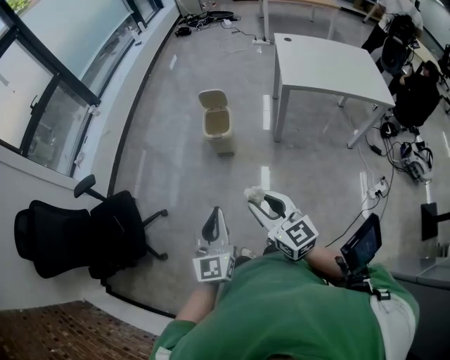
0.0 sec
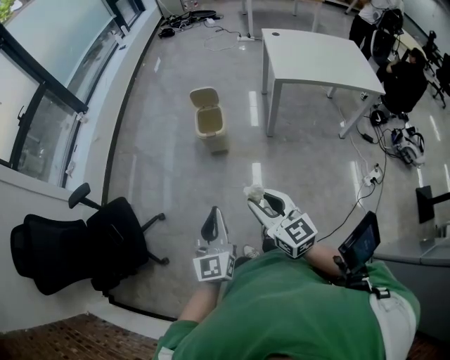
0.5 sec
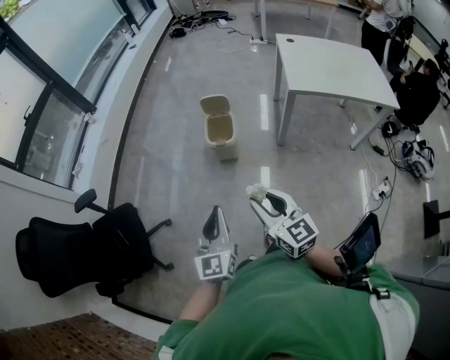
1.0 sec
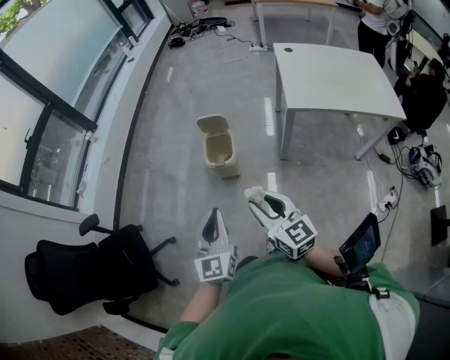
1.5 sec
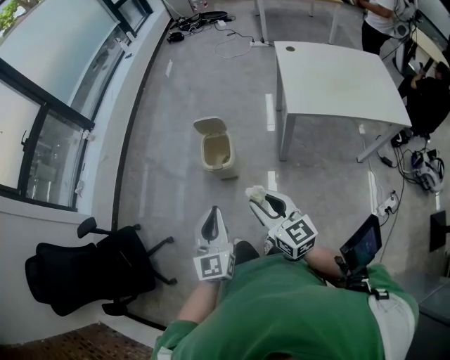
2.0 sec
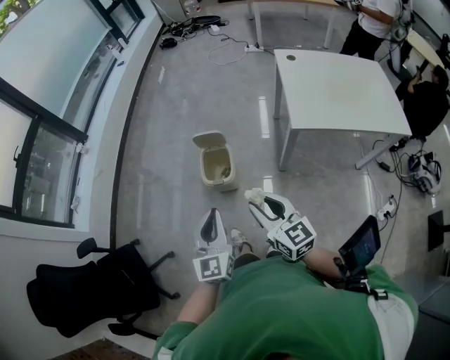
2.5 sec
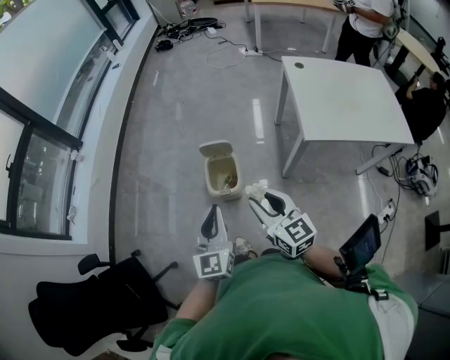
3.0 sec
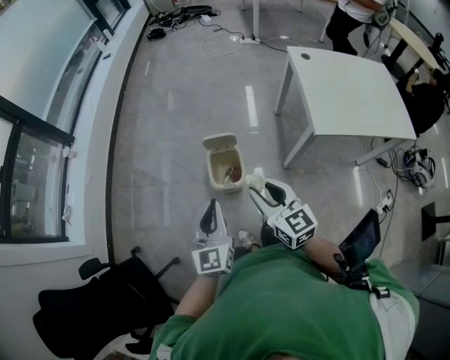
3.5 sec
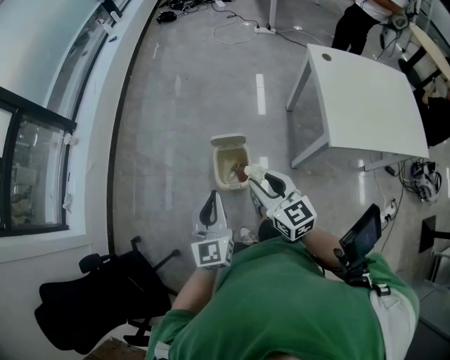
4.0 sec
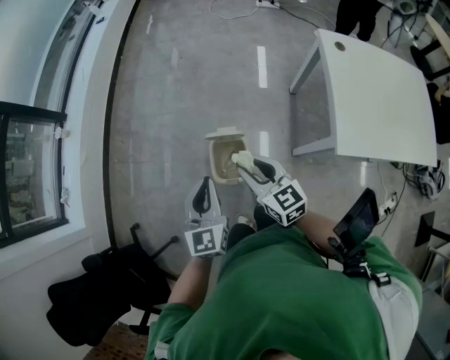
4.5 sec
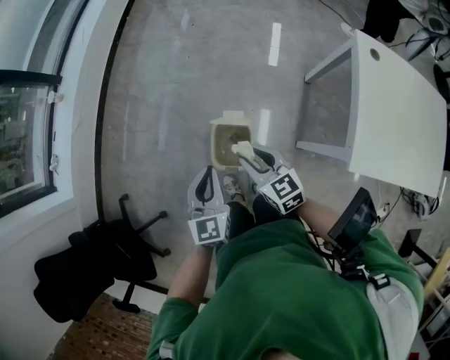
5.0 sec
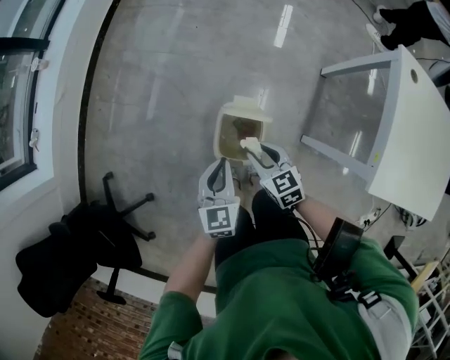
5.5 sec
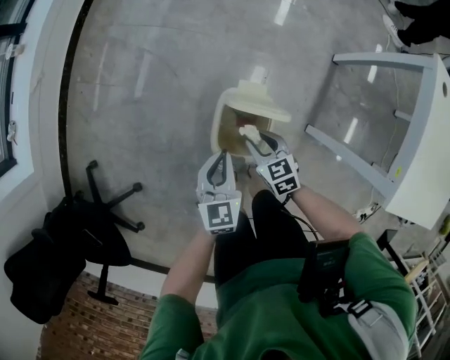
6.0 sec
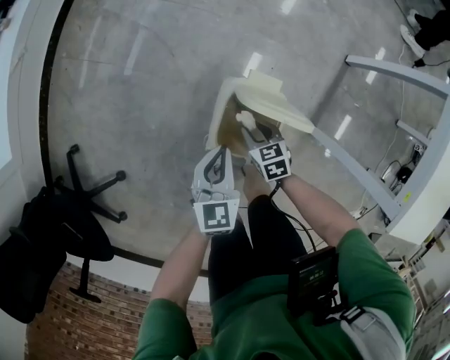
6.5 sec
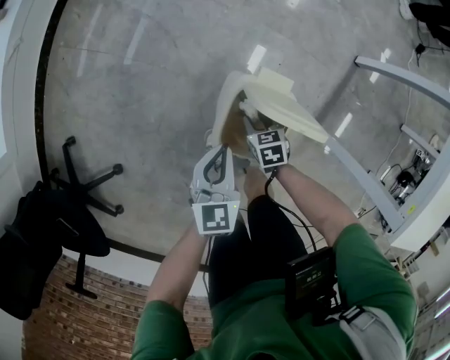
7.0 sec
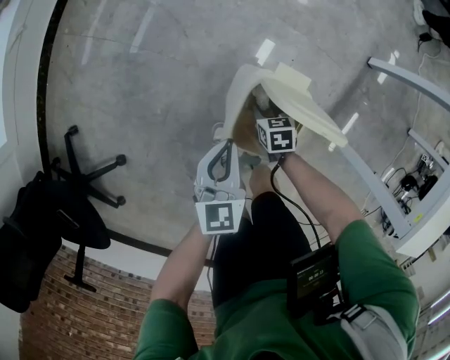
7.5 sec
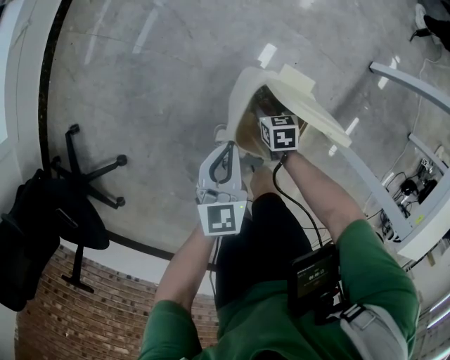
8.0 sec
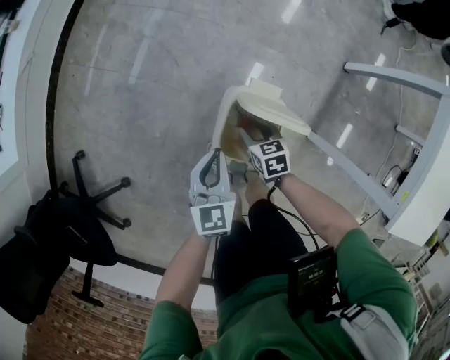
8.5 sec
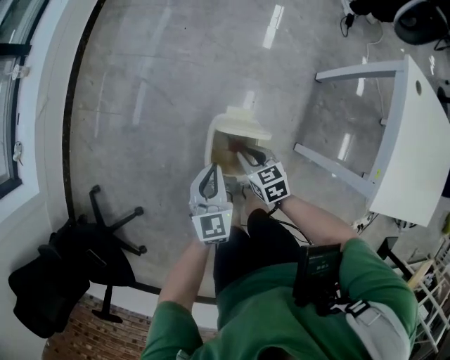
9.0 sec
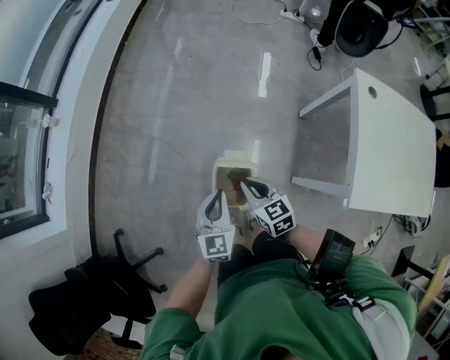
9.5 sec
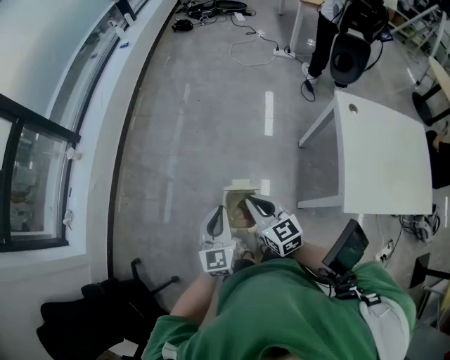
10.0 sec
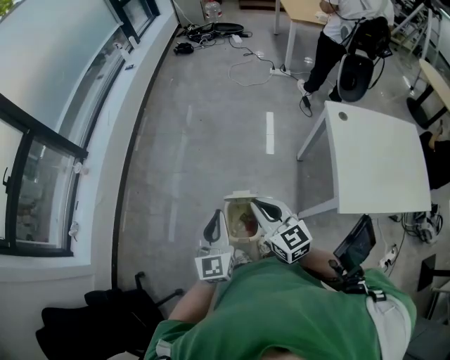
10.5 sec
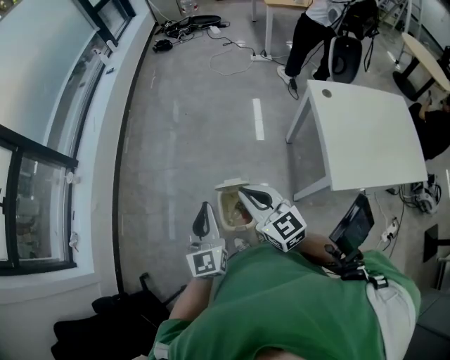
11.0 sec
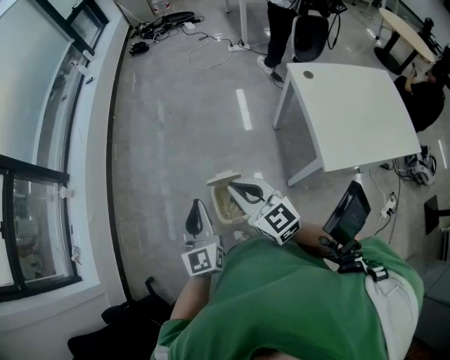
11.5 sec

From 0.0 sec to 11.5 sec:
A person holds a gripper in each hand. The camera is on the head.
From 0.0 sec to 2.0 sec: The two grippers go some 25 cm forward and to the right.
From 2.0 sec to 4.0 sec: Both grippers travel together forward, some 30 cm.
From 4.0 sec to 6.0 sec: The right gripper shifts some 40 cm downward, and points its fingers some 30 degrees further downward. The left gripper travels downward and forward by about 40 cm, and turns by about 30 degrees.
From 6.0 sec to 7.5 sec: The left gripper moves downward, about 10 cm; the right gripper goes approximately 20 cm downward, and rotates approximately 20 degrees.
From 7.5 sec to 9.5 sec: The right gripper heads upward, covering roughly 40 cm, points its fingers about 30 degrees further upward, and closes up; the left gripper moves upward, about 25 cm, and turns by about 20 degrees.
From 9.5 sec to 11.5 sec: Both grippers move upward, approximately 25 cm. The right gripper turns by some 30 degrees.

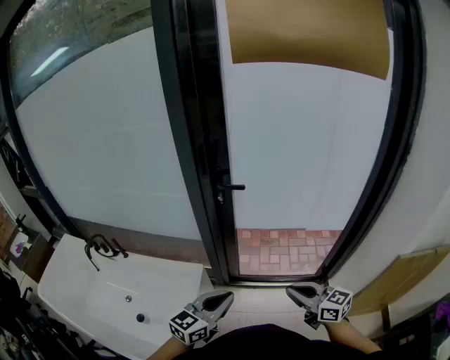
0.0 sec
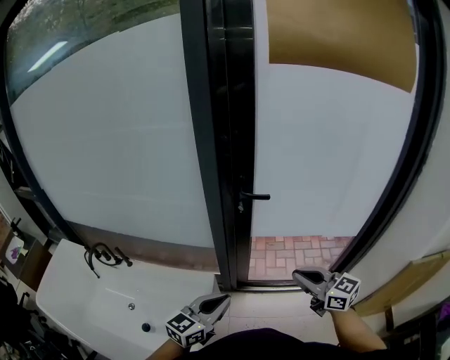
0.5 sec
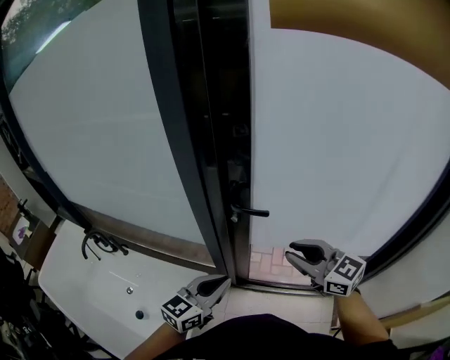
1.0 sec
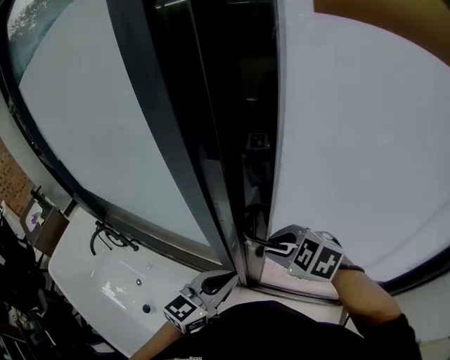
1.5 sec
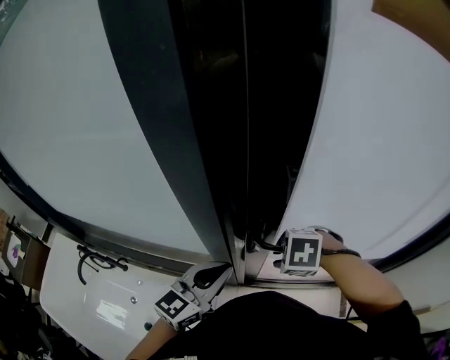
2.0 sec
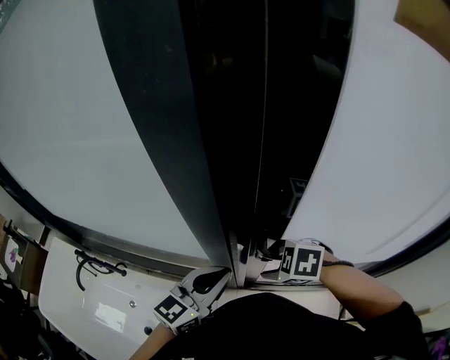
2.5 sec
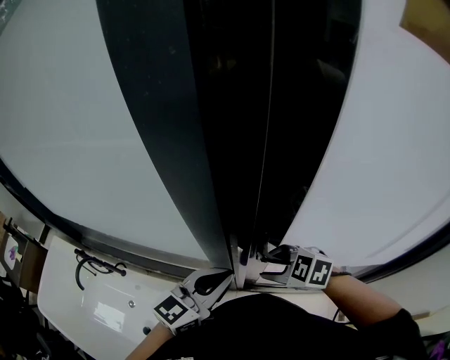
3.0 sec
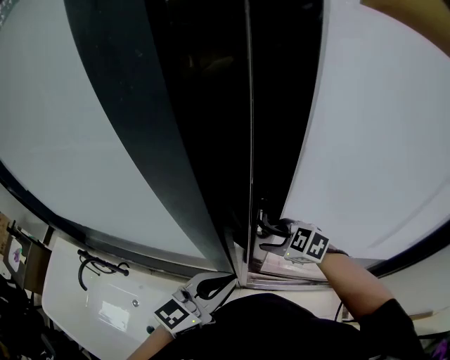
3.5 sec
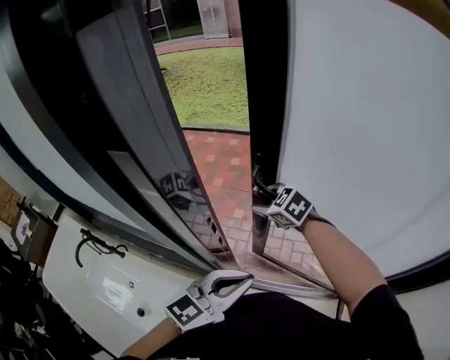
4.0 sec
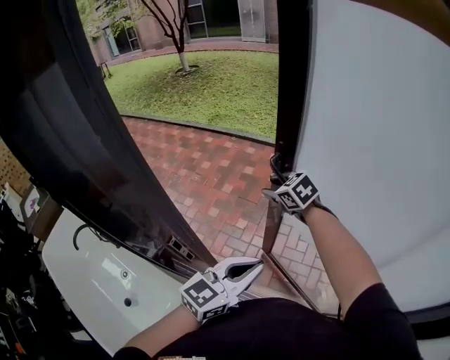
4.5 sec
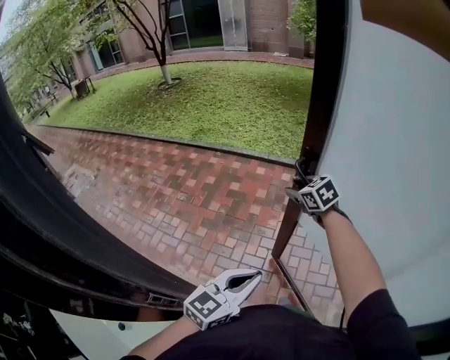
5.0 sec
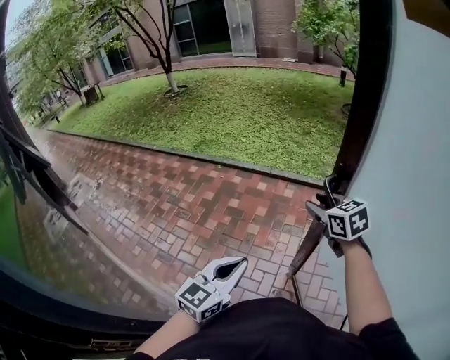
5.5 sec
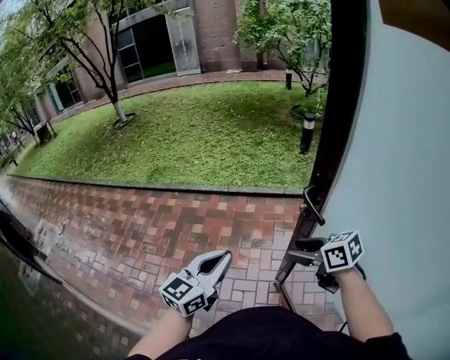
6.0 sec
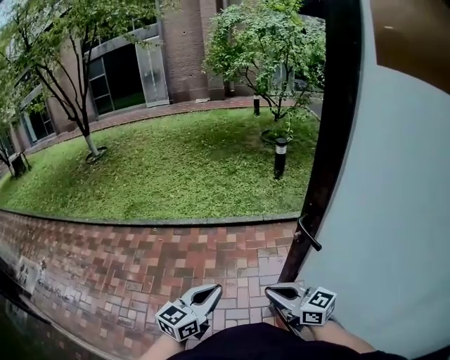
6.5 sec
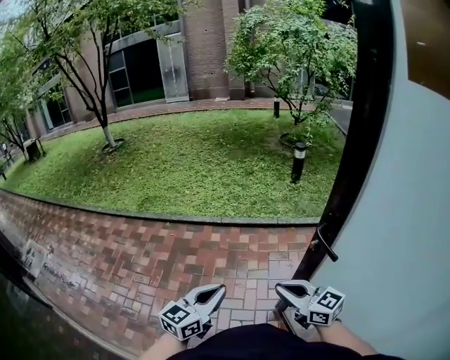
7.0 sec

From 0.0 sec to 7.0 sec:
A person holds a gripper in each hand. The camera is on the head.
From 0.0 sec to 2.0 sec: The right gripper reaches roughly 10 cm upward, then returns, tips its fingers downward by about 70 degrees, and opens its fingers, while the left gripper shifts by about 35 cm.
From 2.0 sec to 3.5 sec: The right gripper moves some 10 cm, and tilts its fingers about 30 degrees upward.
From 3.5 sec to 5.0 sec: The right gripper shifts about 40 cm forward and to the right, and rotates some 20 degrees, while the left gripper goes roughly 30 cm to the right and forward.
From 5.0 sec to 7.0 sec: The right gripper moves to the right and forward, approximately 20 cm, points its fingers some 30 degrees further upward, and closes up. Meanwhile the left gripper shifts roughly 40 cm forward.

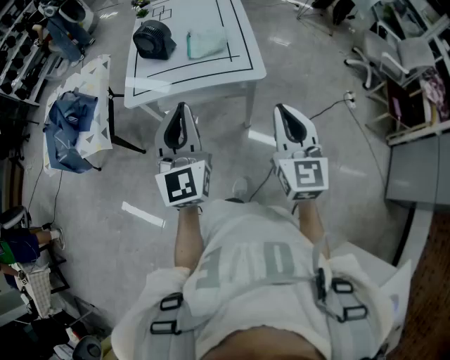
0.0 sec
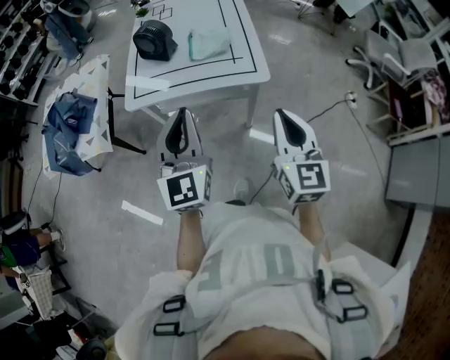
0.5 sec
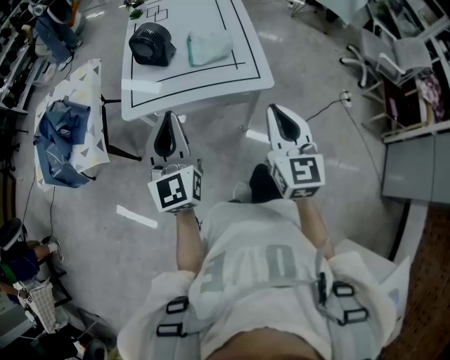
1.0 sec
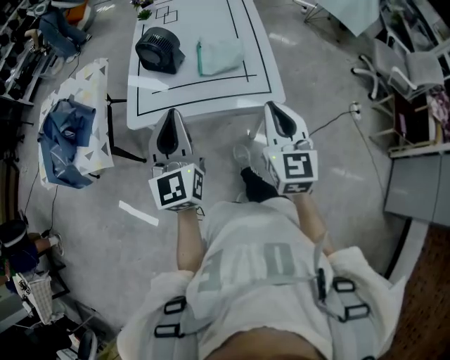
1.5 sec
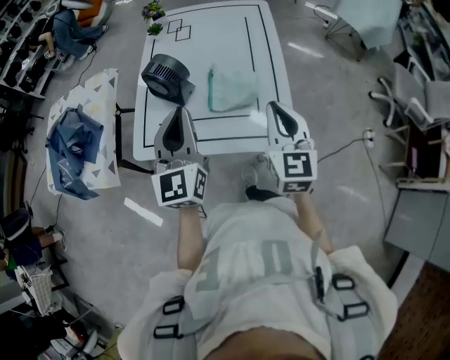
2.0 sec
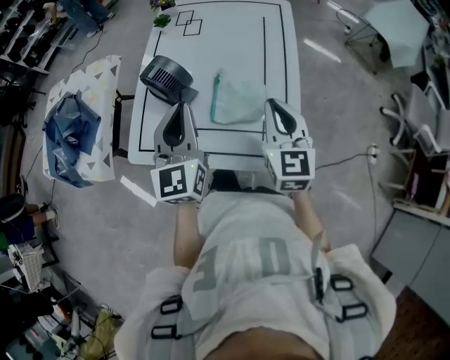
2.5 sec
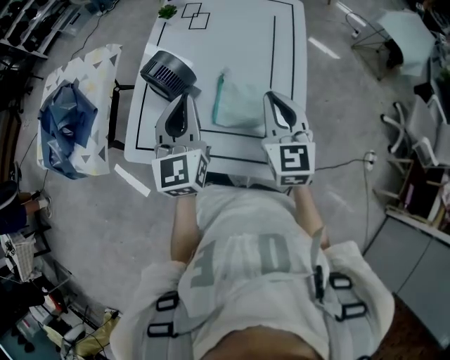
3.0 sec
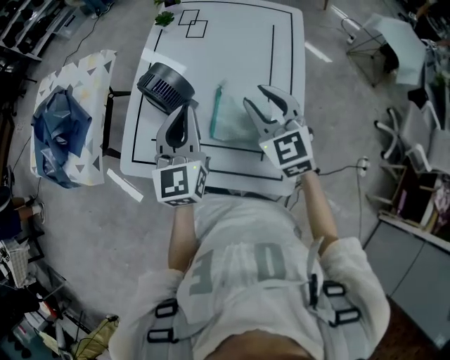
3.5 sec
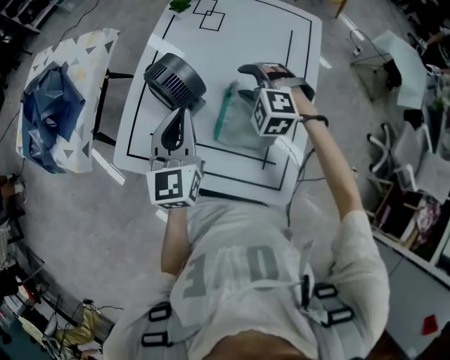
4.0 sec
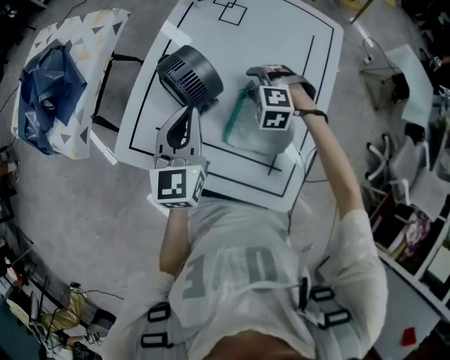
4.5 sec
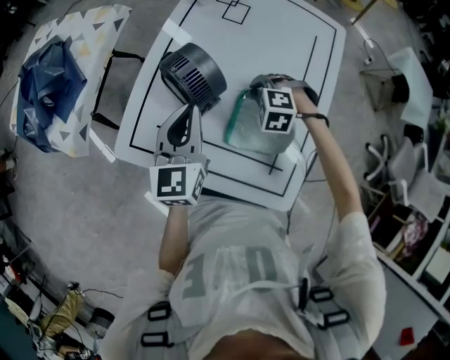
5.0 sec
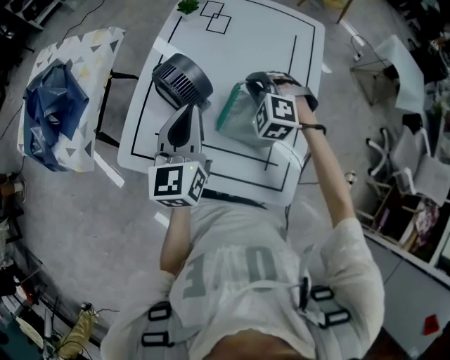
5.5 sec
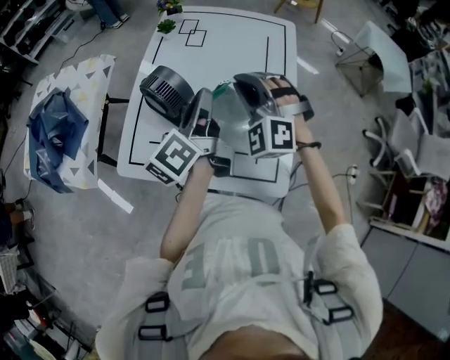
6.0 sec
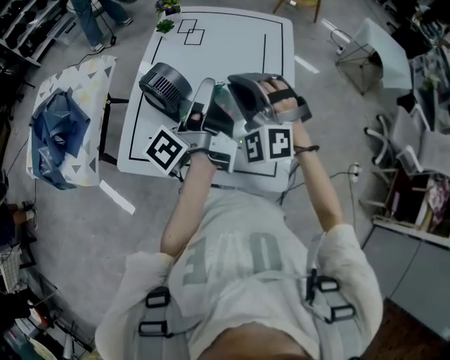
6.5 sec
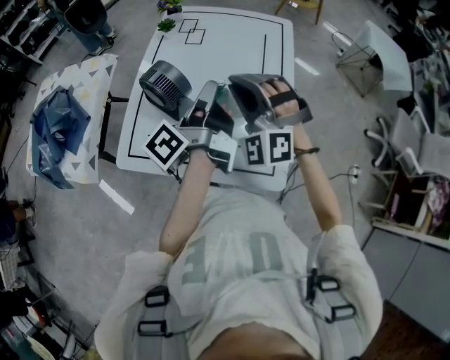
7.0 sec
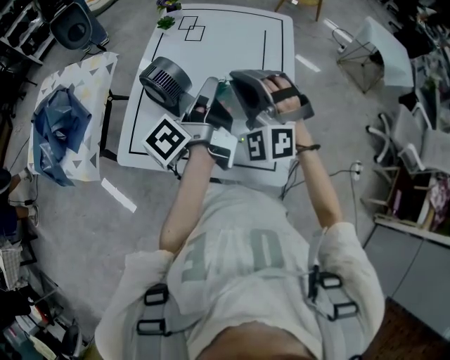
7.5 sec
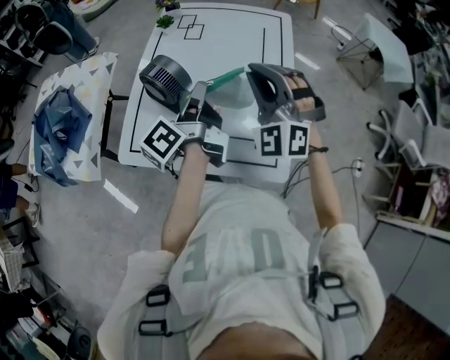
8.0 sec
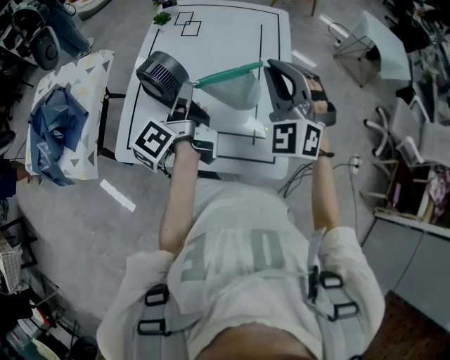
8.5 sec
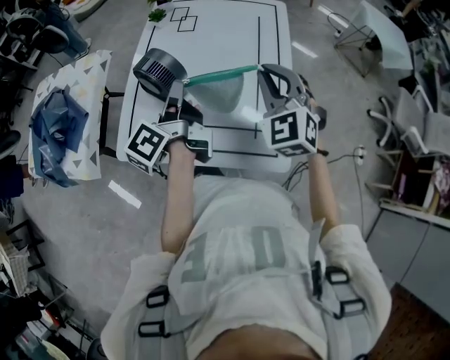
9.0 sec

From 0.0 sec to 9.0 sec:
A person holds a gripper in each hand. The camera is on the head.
From 0.0 sec to 2.0 sec: Both grippers travel together forward, about 35 cm.
From 2.0 sec to 4.5 sec: The right gripper goes some 40 cm forward and downward, tips its fingers downward by approximately 60 degrees, and opens up; the left gripper travels forward and downward by roughly 20 cm, and changes its angle by about 20 degrees.
From 4.5 sec to 7.0 sec: The left gripper is displaced to the right and upward by some 15 cm, rotates around the line of its fingers by roughly 70 degrees, counterclockwise from behind, and opens and closes again. The right gripper shifts about 30 cm upward and backward, points its fingers about 50 degrees further upward, and closes.
From 7.0 sec to 9.0 sec: The left gripper heads to the left, covering approximately 5 cm. The right gripper moves to the right, approximately 10 cm, and changes its angle by about 30 degrees.
